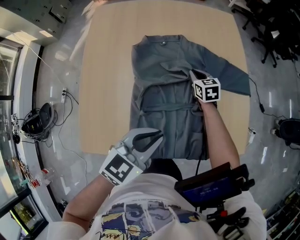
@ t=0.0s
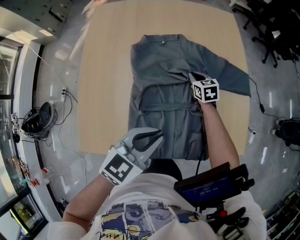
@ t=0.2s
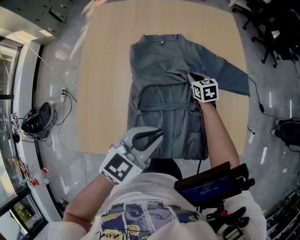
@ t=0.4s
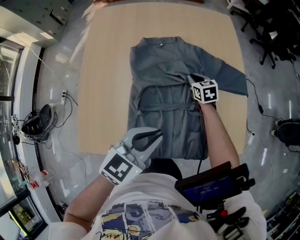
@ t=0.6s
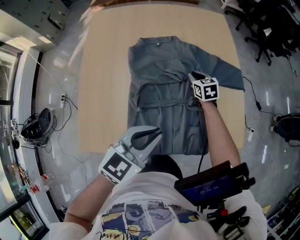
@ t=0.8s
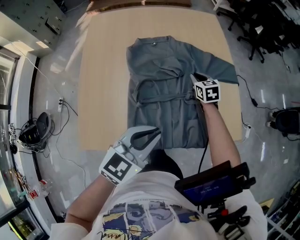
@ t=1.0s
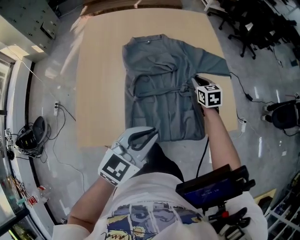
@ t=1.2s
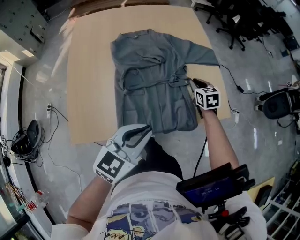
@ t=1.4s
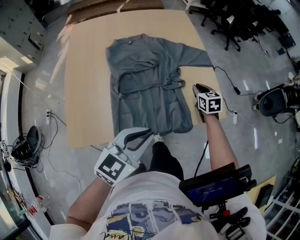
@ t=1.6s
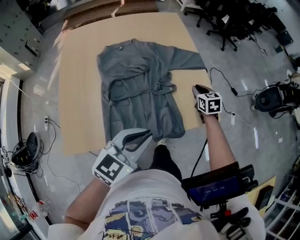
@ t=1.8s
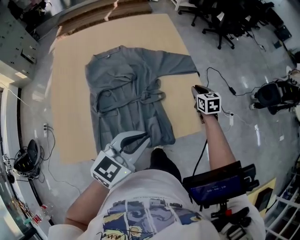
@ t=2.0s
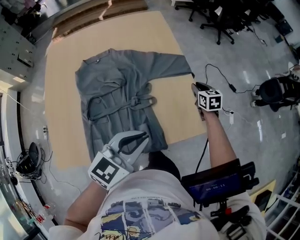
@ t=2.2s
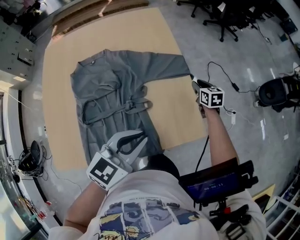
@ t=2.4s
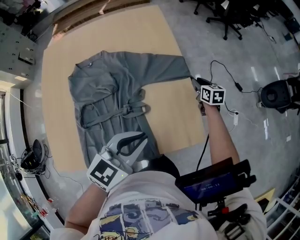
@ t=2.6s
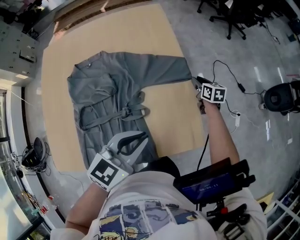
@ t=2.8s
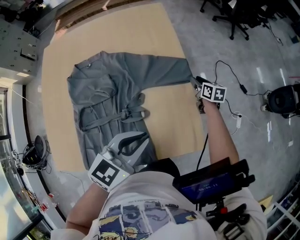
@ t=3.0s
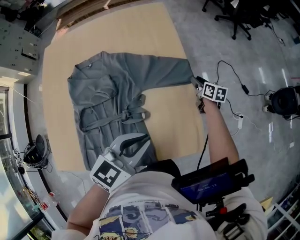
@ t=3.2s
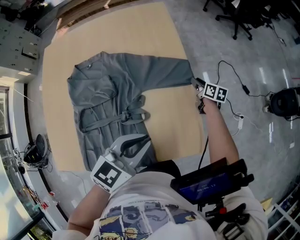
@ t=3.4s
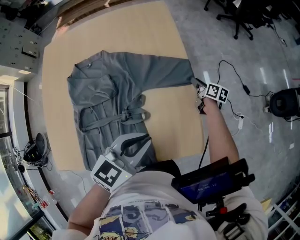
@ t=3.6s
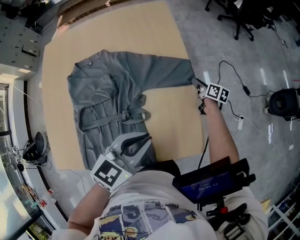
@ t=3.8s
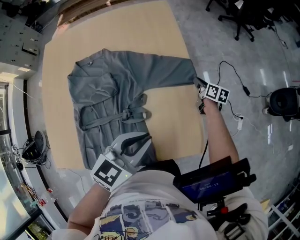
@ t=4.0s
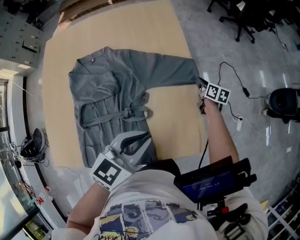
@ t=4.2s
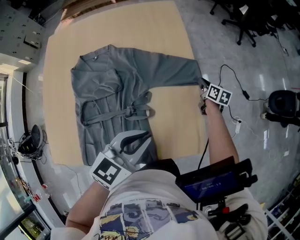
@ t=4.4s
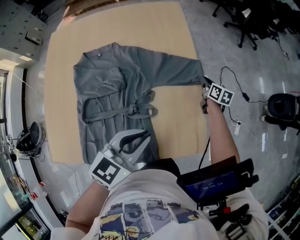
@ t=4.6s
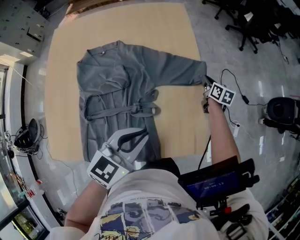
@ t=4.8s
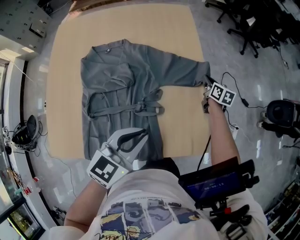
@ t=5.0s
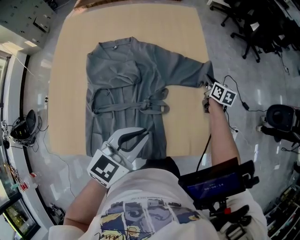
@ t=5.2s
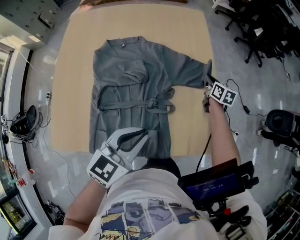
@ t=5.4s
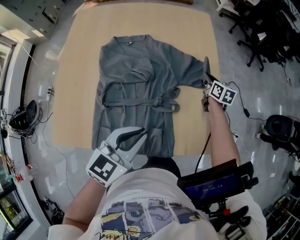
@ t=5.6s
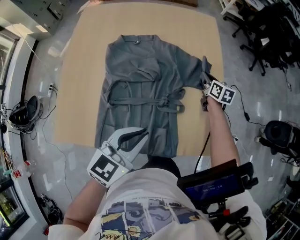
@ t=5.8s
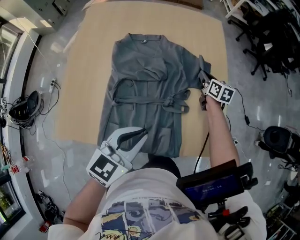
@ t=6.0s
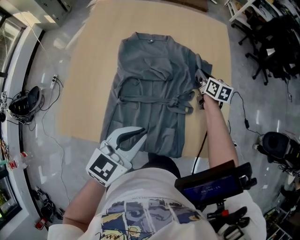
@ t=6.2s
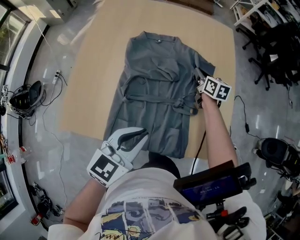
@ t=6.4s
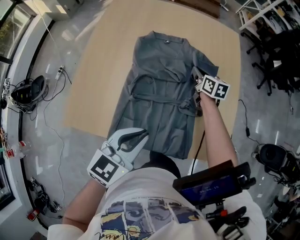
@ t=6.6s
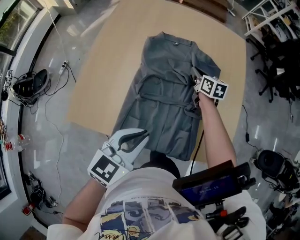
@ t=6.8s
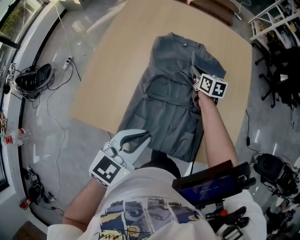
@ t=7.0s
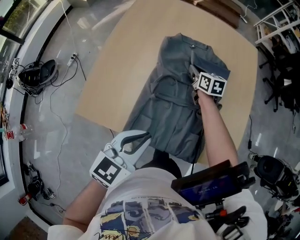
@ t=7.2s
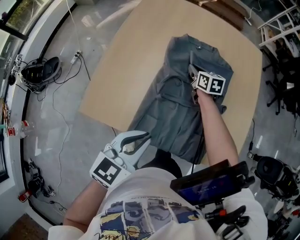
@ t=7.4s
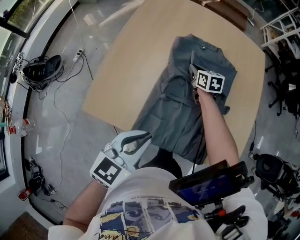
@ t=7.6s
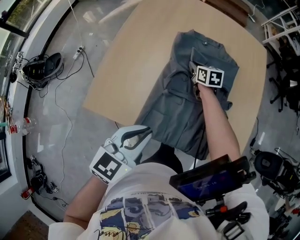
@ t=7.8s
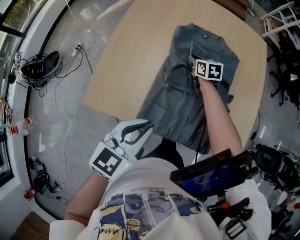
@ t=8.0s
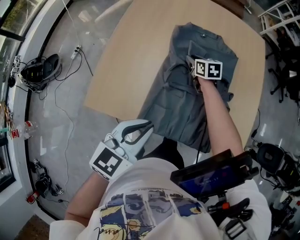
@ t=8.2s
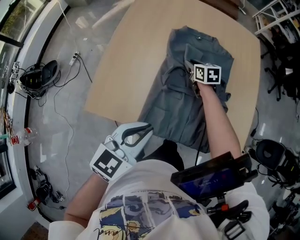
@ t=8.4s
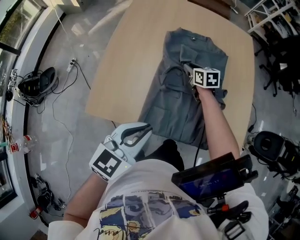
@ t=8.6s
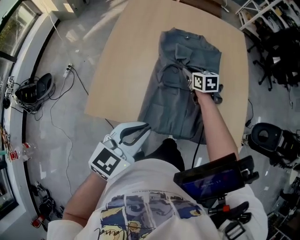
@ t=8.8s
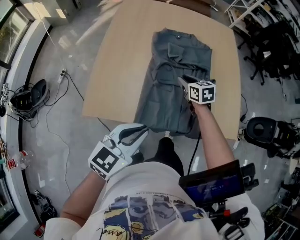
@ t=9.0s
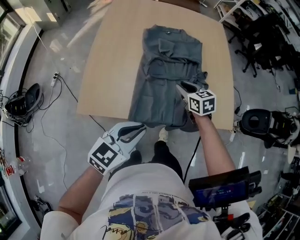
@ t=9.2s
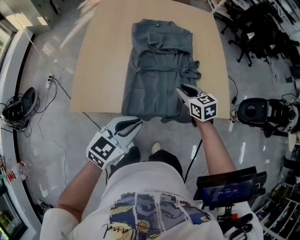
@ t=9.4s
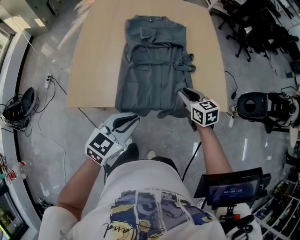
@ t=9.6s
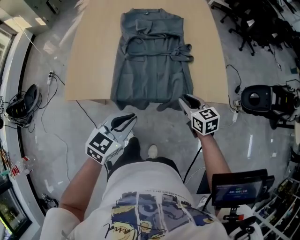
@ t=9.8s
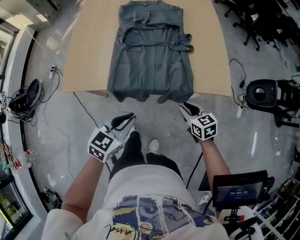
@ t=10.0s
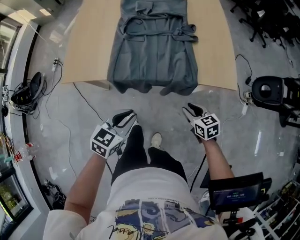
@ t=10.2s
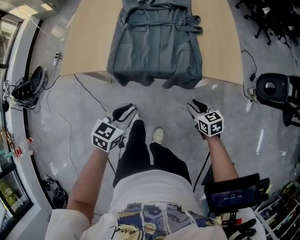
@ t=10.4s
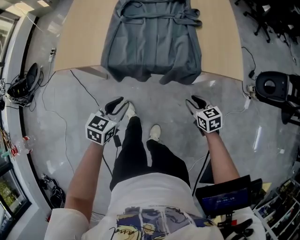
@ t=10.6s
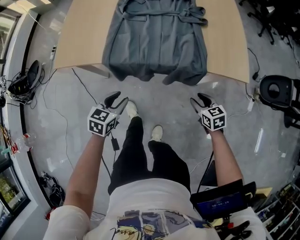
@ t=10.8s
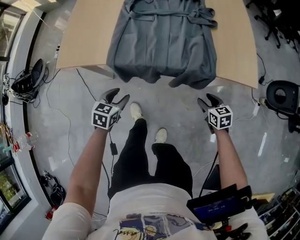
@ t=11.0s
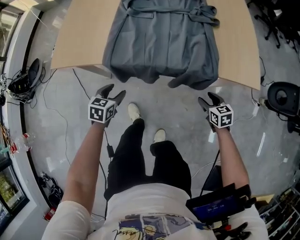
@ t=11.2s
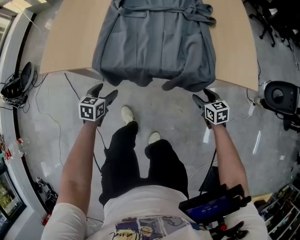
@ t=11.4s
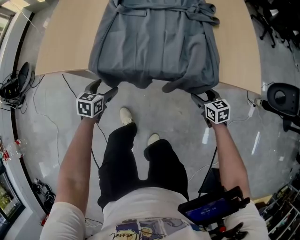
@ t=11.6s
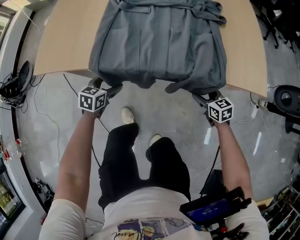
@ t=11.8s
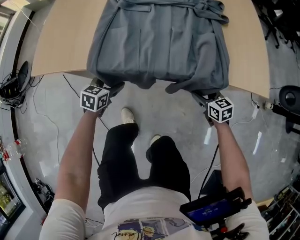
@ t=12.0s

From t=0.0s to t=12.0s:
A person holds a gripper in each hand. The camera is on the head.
From t=0.0s to t=1.6s: The left gripper heads backward and to the right, covering about 15 cm; the right gripper shifts about 25 cm to the right and backward.
From t=1.6s to t=3.0s: Both grippers travel together forward and to the right, some 30 cm. The right gripper swivels roughly 30 degrees, and opens.
From t=3.0s to t=4.4s: The right gripper closes up.
From t=4.4s to t=6.0s: The right gripper is displaced to the left and upward by about 25 cm. Meanwhile the left gripper goes roughly 20 cm to the left and backward.
From t=6.0s to t=7.6s: The left gripper moves to the left and backward, some 15 cm. Meanwhile the right gripper shifts about 35 cm to the left, and rotates approximately 20 degrees.
From t=7.6s to t=9.0s: The right gripper moves backward, roughly 15 cm; the left gripper moves backward, about 5 cm.
From t=9.0s to t=10.4s: The left gripper is displaced downward, backward and to the right by approximately 25 cm, while the right gripper goes some 40 cm backward and to the right.
From t=10.4s to t=12.0s: The left gripper moves downward and forward, approximately 30 cm, and opens up, while the right gripper moves downward and forward, approximately 20 cm, and opens its fingers.

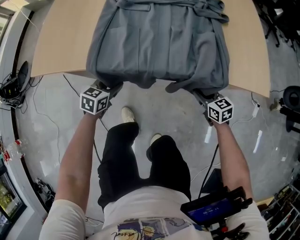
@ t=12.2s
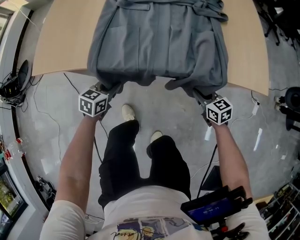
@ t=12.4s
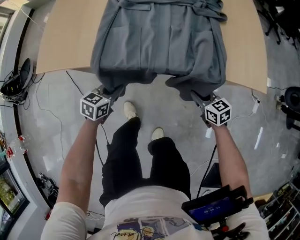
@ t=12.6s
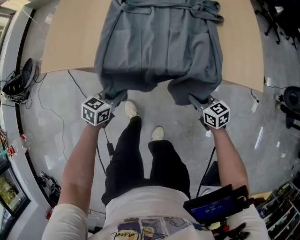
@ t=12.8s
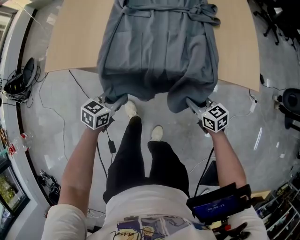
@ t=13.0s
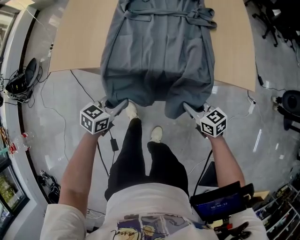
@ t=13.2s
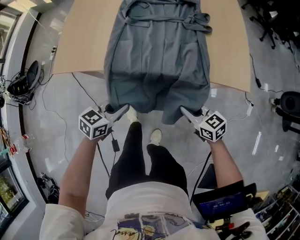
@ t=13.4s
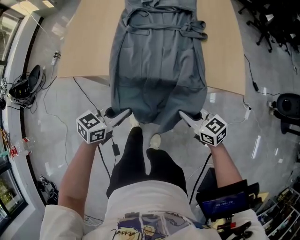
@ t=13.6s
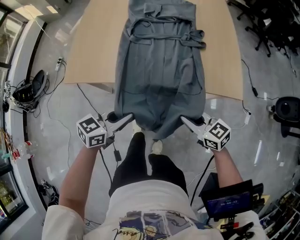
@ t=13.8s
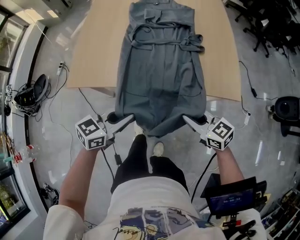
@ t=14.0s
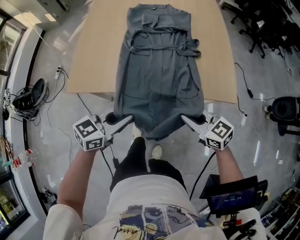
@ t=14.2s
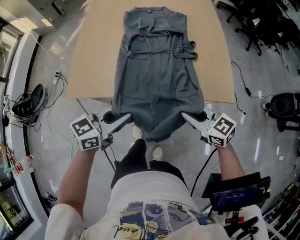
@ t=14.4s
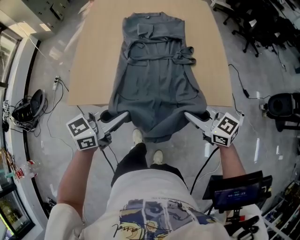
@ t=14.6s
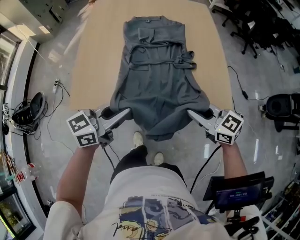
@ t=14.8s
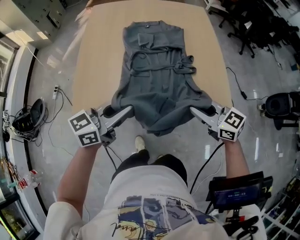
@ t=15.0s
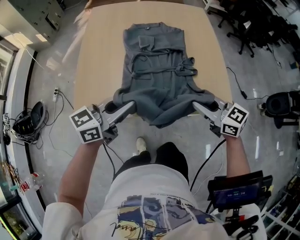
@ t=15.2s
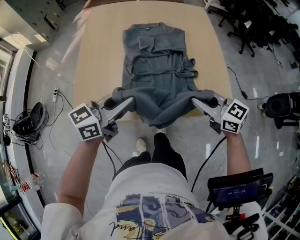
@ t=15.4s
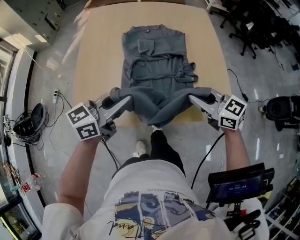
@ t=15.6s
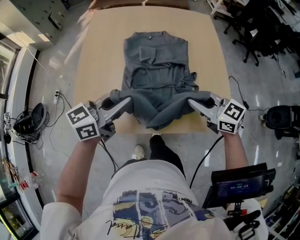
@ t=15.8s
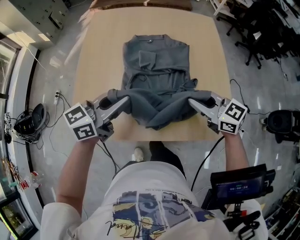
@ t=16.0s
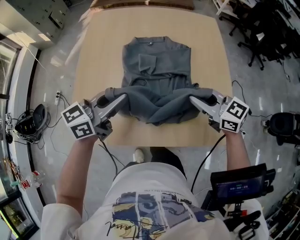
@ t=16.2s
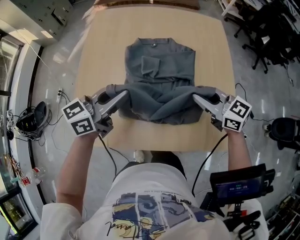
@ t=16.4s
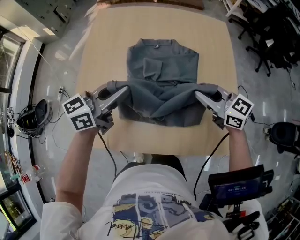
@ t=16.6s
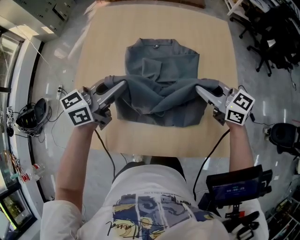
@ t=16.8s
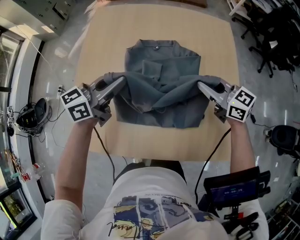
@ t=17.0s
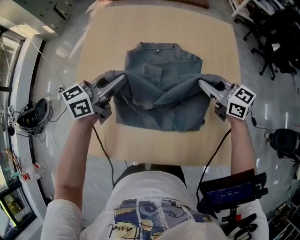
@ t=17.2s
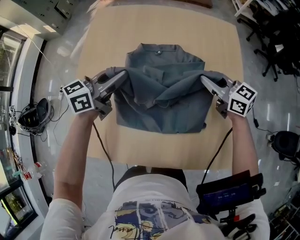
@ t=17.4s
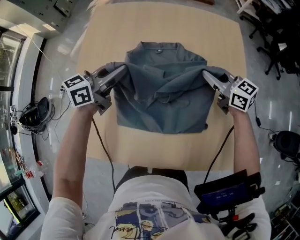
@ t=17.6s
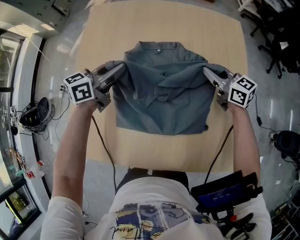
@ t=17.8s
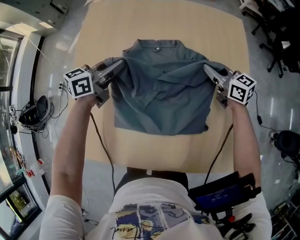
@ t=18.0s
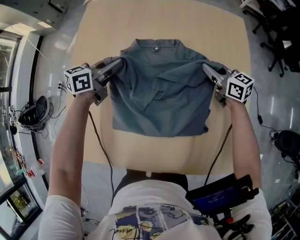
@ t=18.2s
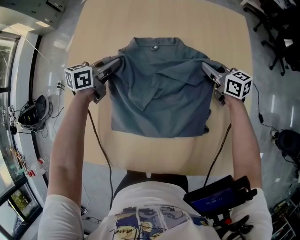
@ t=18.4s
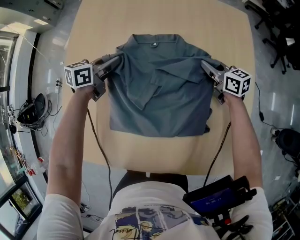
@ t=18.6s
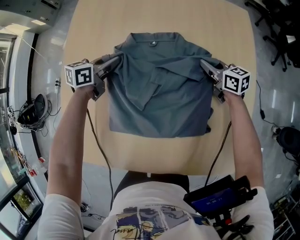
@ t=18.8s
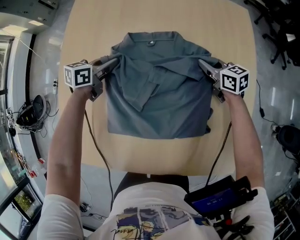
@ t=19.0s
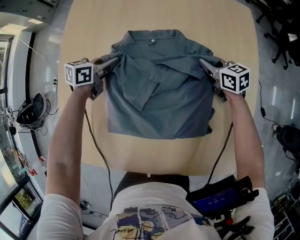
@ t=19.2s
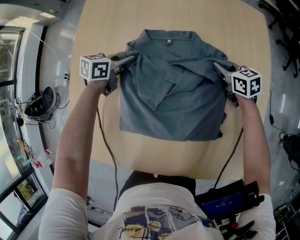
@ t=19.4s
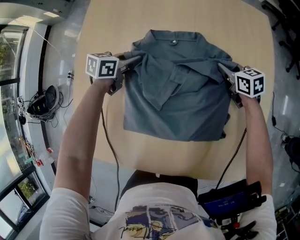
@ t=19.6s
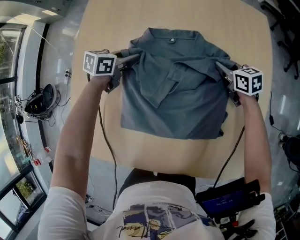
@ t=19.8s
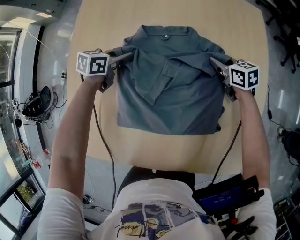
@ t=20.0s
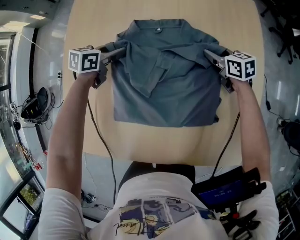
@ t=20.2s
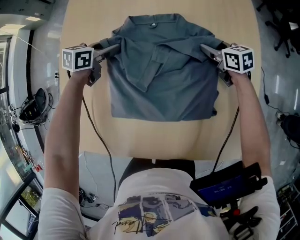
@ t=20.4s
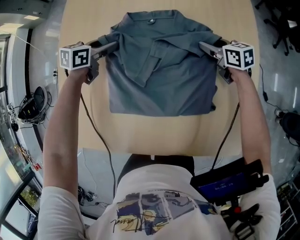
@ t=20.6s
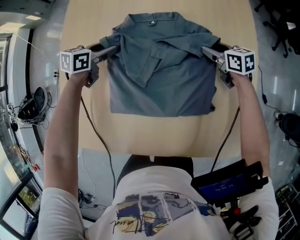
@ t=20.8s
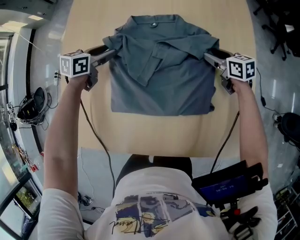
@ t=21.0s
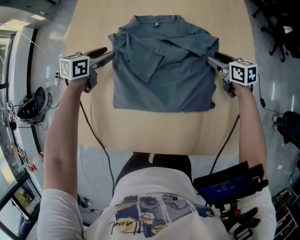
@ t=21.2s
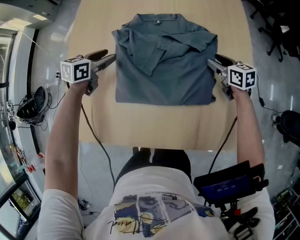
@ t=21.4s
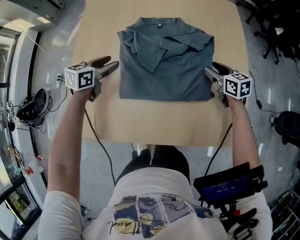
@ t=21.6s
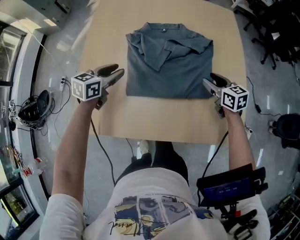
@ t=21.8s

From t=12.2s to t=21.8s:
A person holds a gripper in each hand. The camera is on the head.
From t=12.2s to t=13.8s: The grippers both shift upward by roughly 25 cm. The left gripper turns by roughly 30 degrees, and closes its fingers. The right gripper changes its angle by approximately 20 degrees, and closes its fingers.
From t=13.8s to t=15.4s: The grippers both shift upward and forward by some 25 cm.
From t=15.4s to t=17.0s: The grippers both shift forward by roughly 30 cm.
From t=17.0s to t=18.6s: The two grippers go approximately 25 cm downward and forward. The left gripper swivels about 20 degrees.
From t=18.6s to t=20.2s: The left gripper opens its fingers, while the right gripper opens.
From t=20.2s to t=21.8s: The two grippers go approximately 20 cm backward and upward. The right gripper opens its fingers.

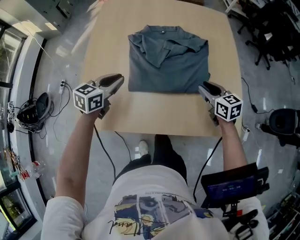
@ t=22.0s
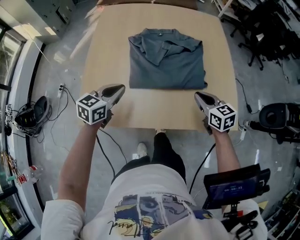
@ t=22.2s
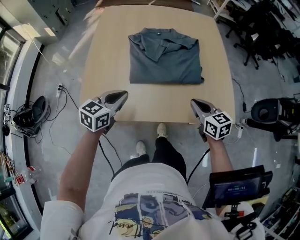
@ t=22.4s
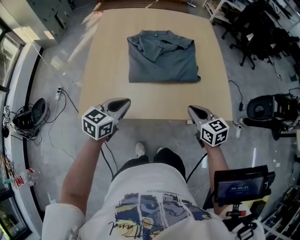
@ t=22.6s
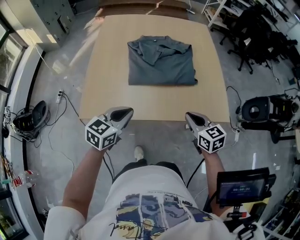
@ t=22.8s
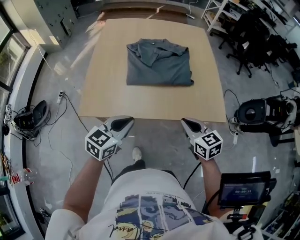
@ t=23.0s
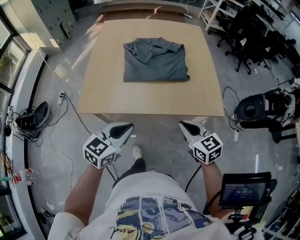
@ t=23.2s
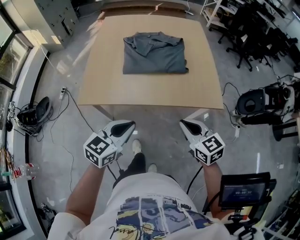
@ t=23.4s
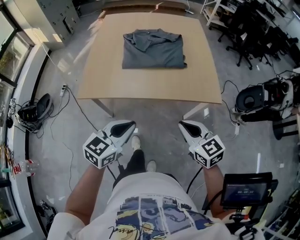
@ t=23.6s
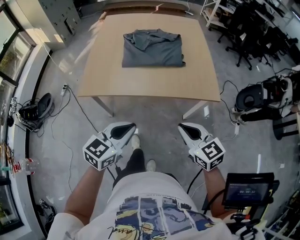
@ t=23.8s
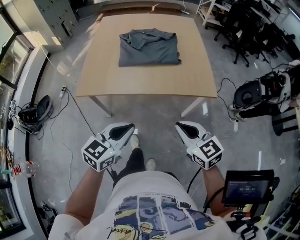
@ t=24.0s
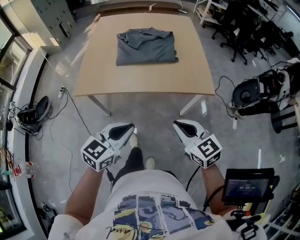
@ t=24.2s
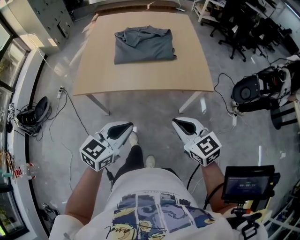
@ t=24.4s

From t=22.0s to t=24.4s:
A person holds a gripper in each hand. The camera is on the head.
From t=22.0s to t=23.2s: The grippers both shift backward by roughly 30 cm. The right gripper closes up.
From t=23.2s to t=24.4s: The right gripper shifts roughly 15 cm backward; the left gripper goes roughly 15 cm backward and to the right.
